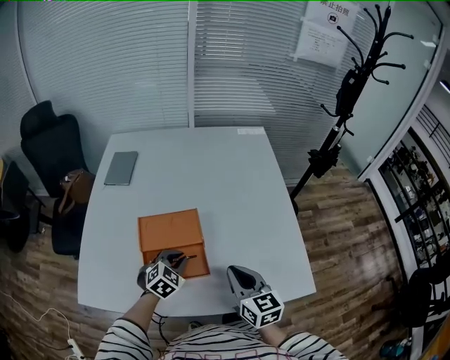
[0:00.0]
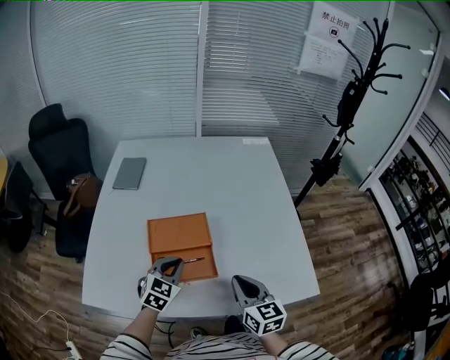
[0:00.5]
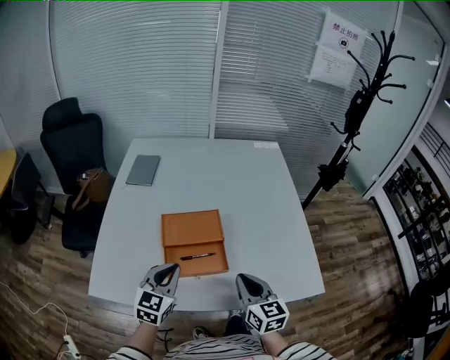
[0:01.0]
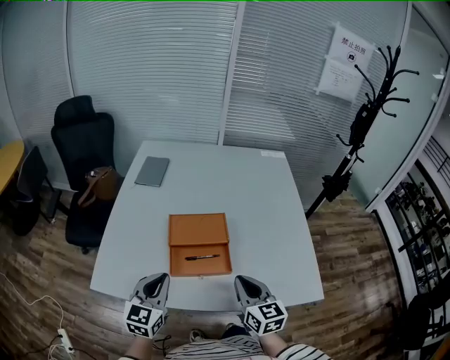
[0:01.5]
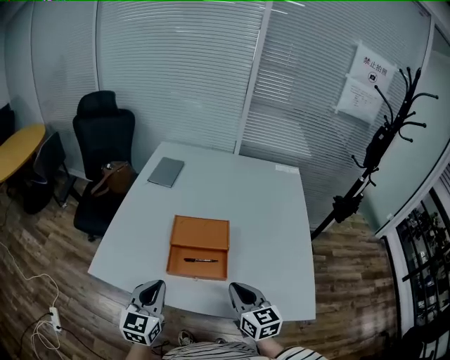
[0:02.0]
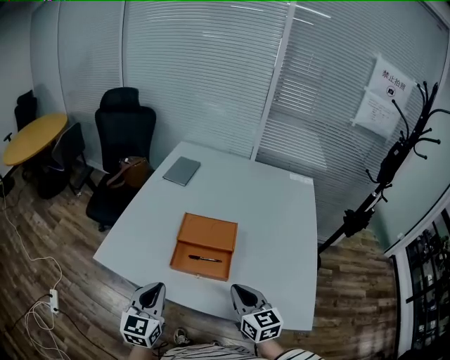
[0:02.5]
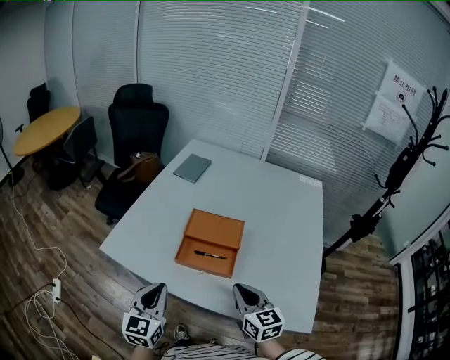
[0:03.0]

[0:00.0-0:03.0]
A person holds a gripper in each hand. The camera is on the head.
0:00.0 to 0:01.5: The left gripper is displaced backward, upward and to the left by approximately 25 cm, and tips its fingers upward by roughly 30 degrees. The right gripper travels backward and to the left by some 10 cm.
0:01.5 to 0:03.0: The left gripper travels backward by roughly 10 cm, and turns by some 20 degrees, while the right gripper changes its angle by some 20 degrees.

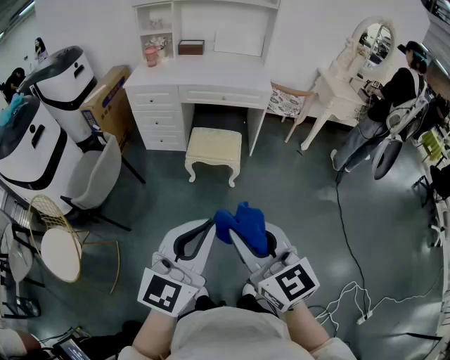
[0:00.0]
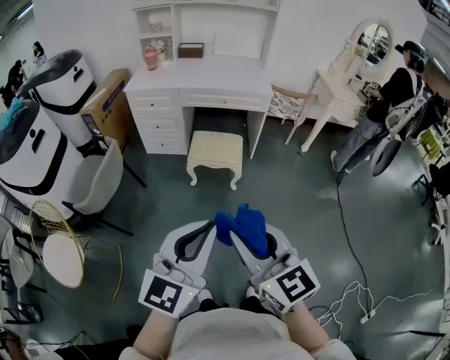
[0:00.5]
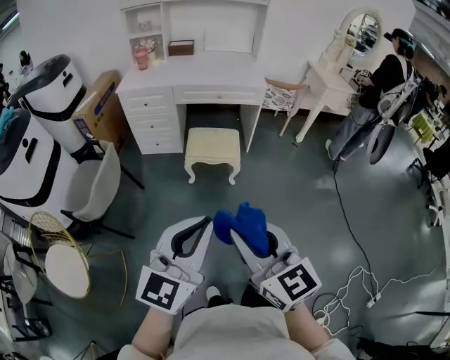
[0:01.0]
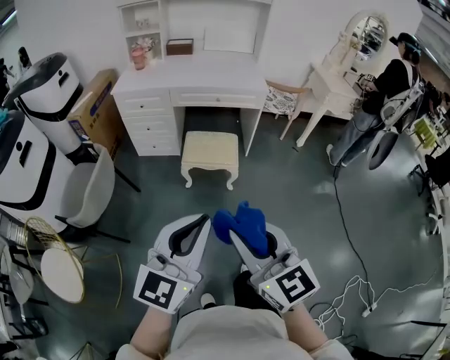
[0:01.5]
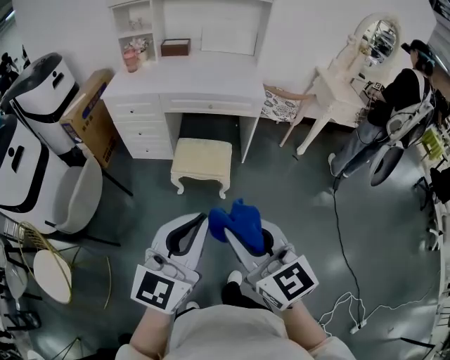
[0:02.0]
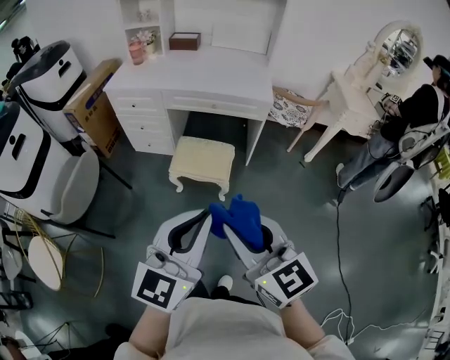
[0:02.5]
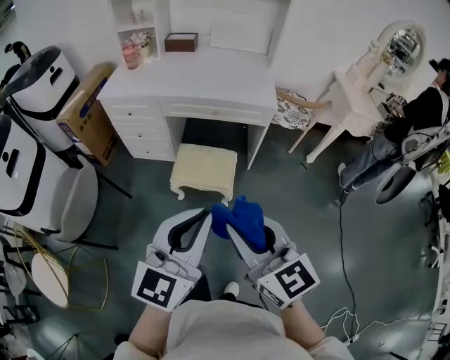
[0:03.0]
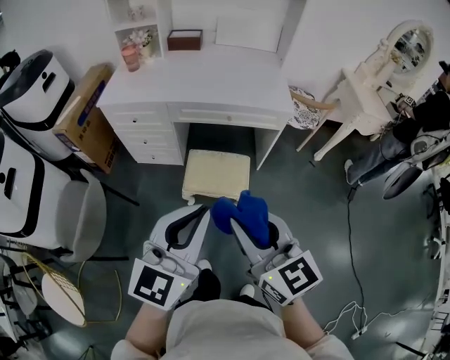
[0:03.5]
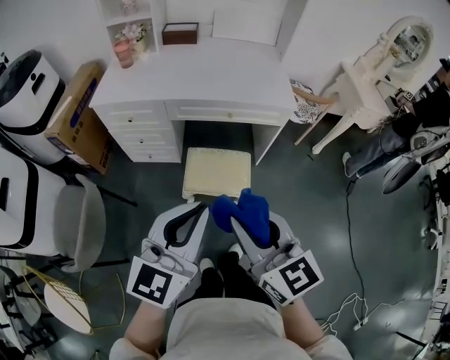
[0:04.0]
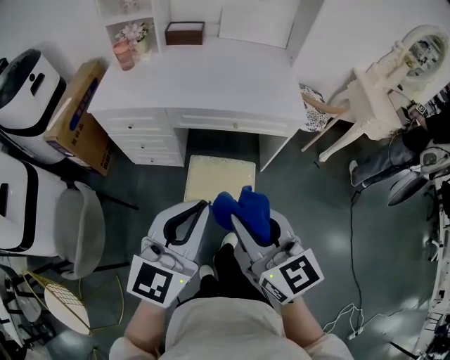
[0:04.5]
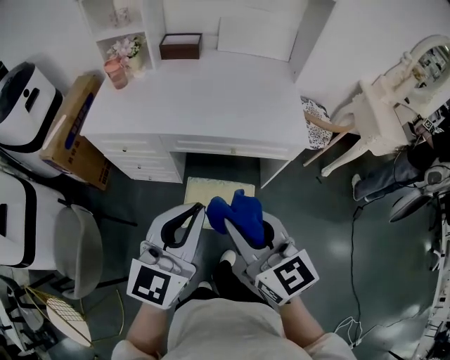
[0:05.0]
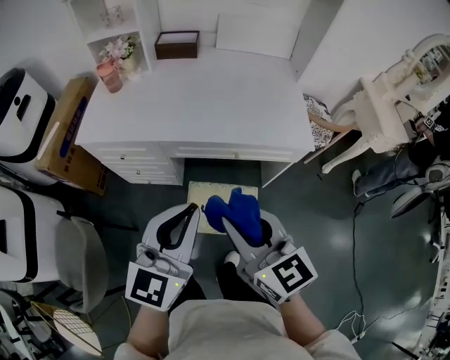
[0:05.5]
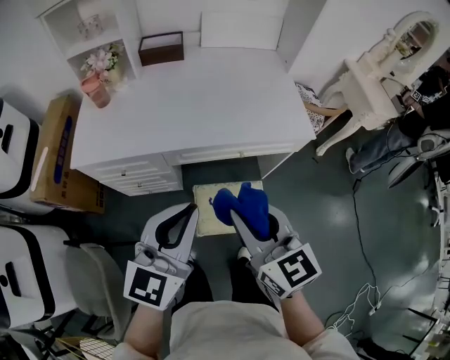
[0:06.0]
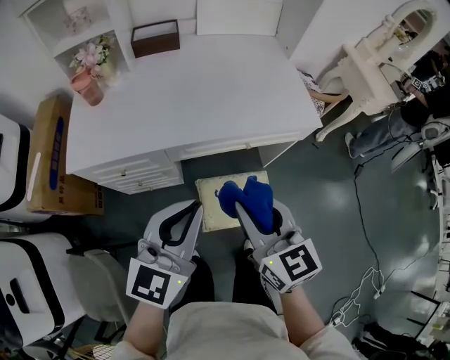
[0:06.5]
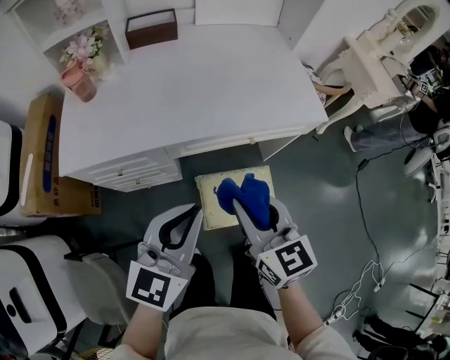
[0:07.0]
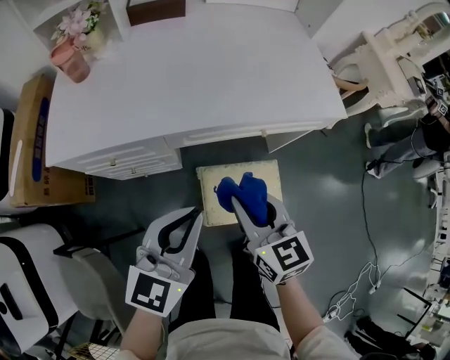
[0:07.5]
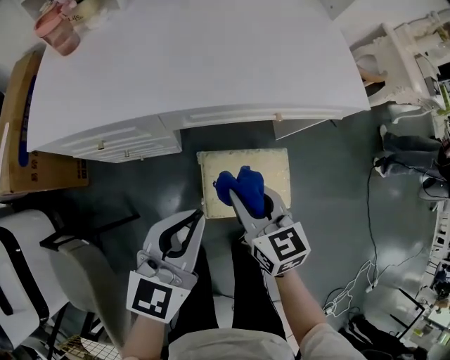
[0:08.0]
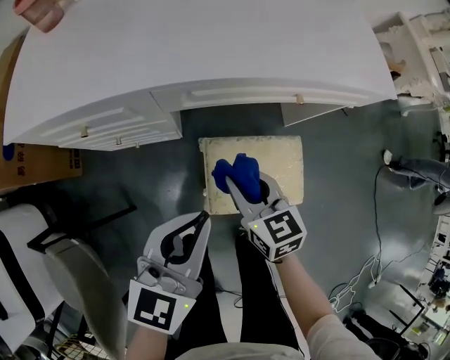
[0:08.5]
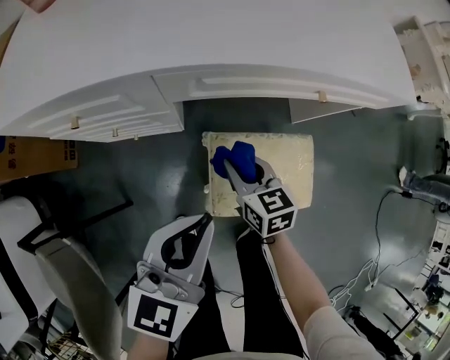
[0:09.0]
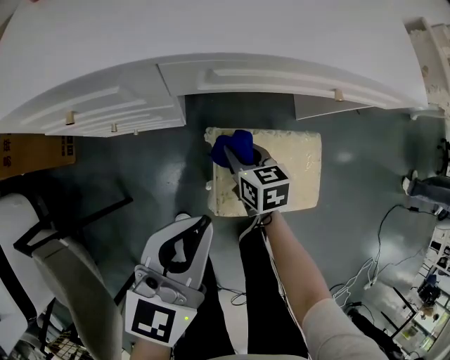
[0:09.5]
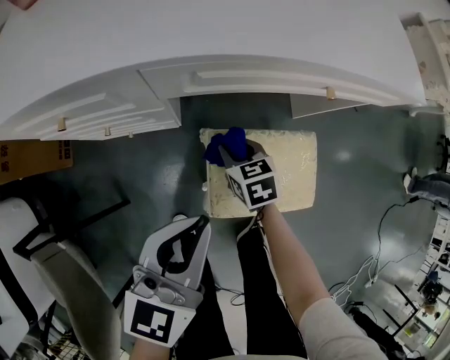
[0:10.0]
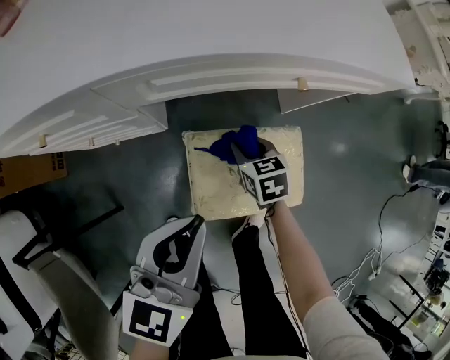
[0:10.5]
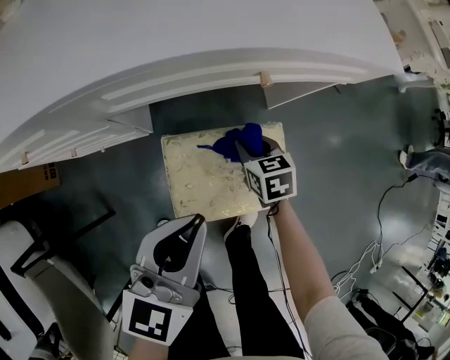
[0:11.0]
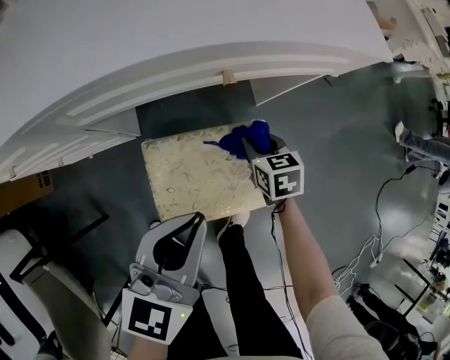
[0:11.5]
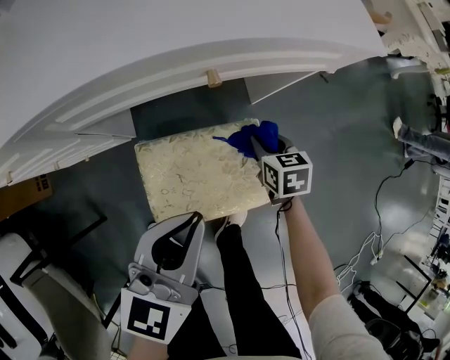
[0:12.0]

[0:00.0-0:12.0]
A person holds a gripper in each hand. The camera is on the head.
0:00.0 to 0:02.0: The two grippers go about 15 cm forward.
0:02.0 to 0:04.0: Both grippers travel together forward, roughly 30 cm.
0:04.0 to 0:06.0: The grippers both shift forward by about 30 cm.
0:06.0 to 0:08.0: The grippers both shift downward by roughly 25 cm.
0:08.0 to 0:10.0: The right gripper heads downward, covering some 30 cm, and changes its angle by about 20 degrees, while the left gripper goes about 10 cm downward.
0:10.0 to 0:12.0: The right gripper shifts roughly 30 cm to the right, while the left gripper goes approximately 15 cm to the right.

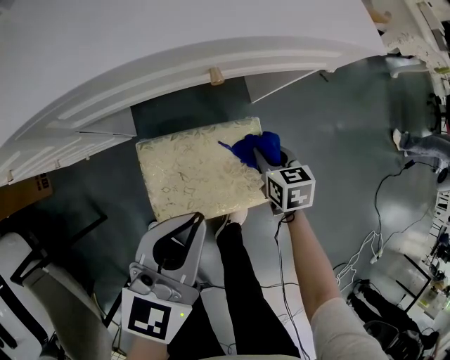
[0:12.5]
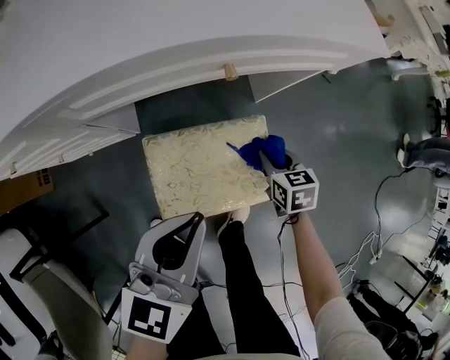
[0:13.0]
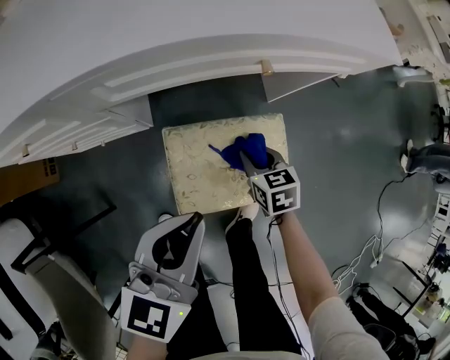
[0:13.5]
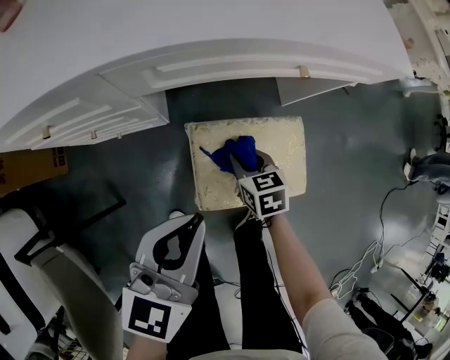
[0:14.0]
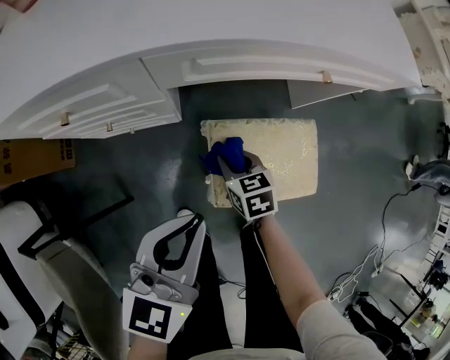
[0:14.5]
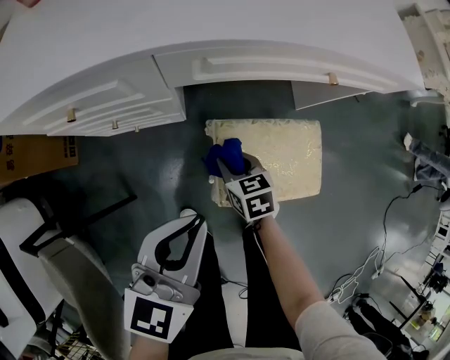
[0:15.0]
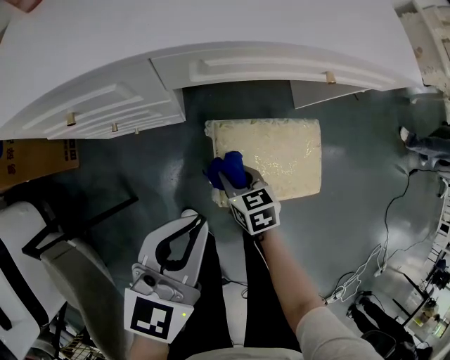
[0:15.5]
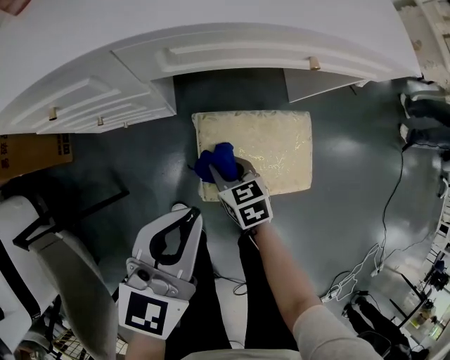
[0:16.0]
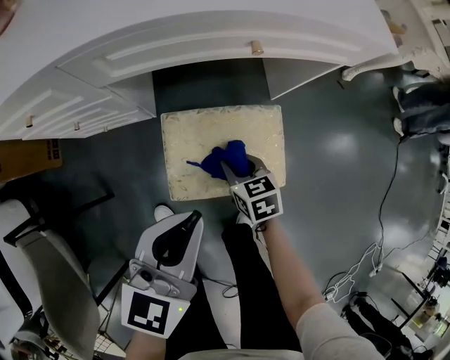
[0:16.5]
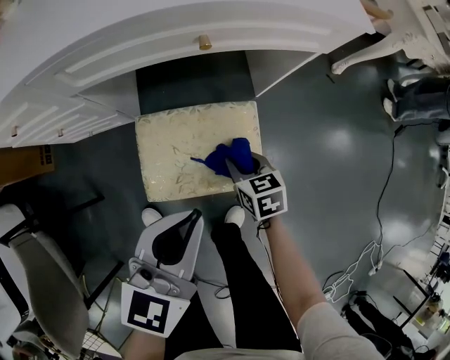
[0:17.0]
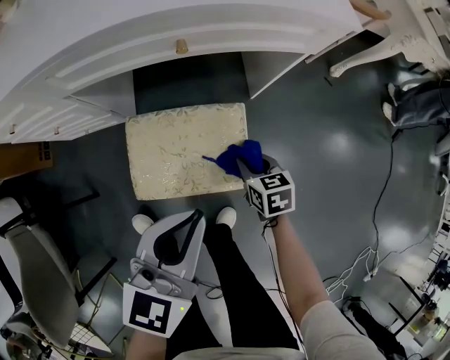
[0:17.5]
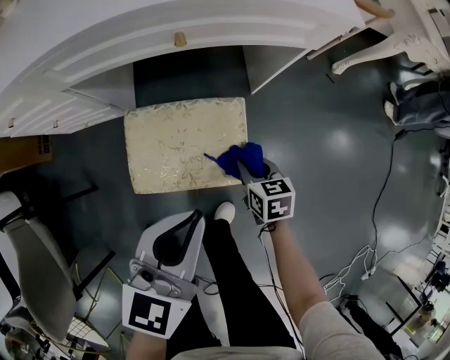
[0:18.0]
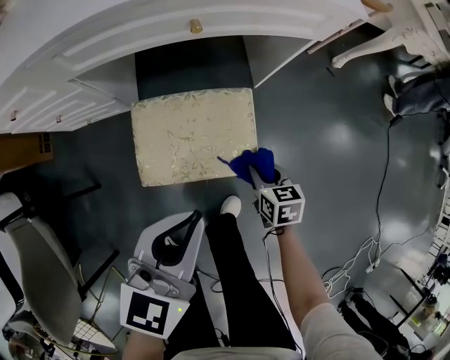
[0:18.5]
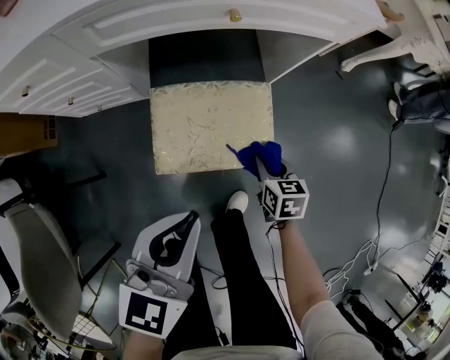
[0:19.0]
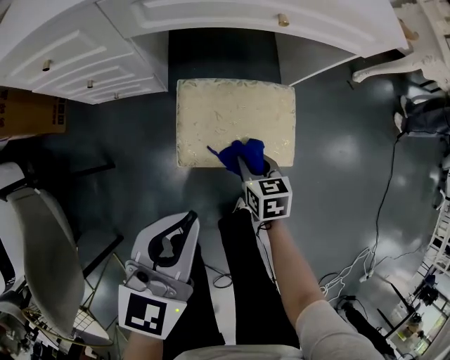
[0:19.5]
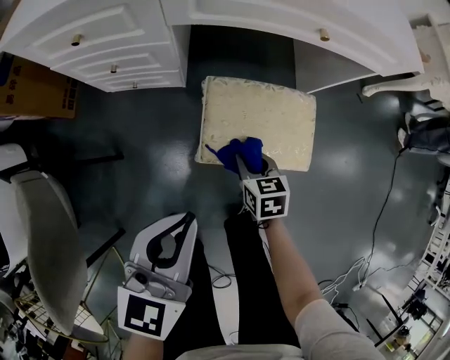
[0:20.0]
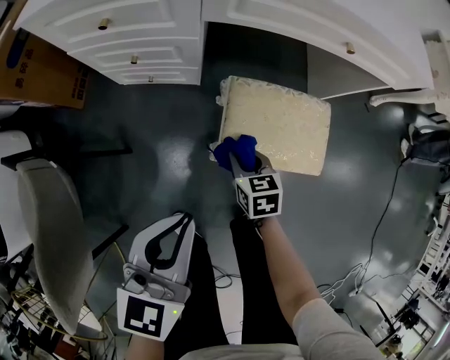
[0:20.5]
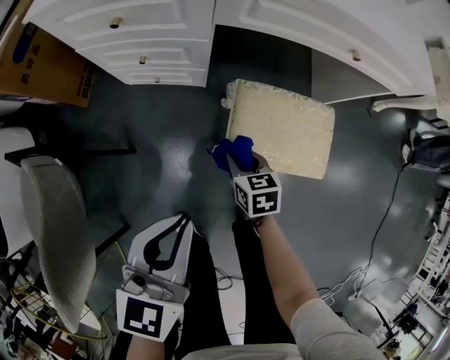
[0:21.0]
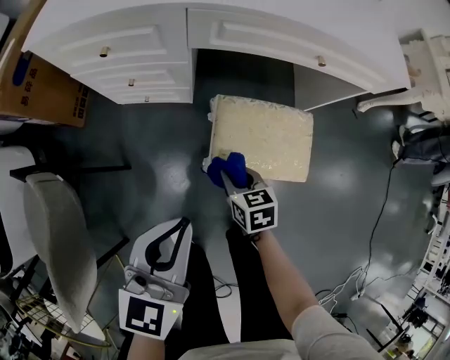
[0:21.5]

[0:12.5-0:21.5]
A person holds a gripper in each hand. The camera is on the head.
0:12.5 to 0:14.5: The left gripper travels to the left by approximately 20 cm. The right gripper moves to the left, about 30 cm.
0:14.5 to 0:17.0: The two grippers go about 20 cm to the right.
0:17.0 to 0:19.5: The left gripper travels to the left and backward by some 15 cm; the right gripper moves backward and to the left, approximately 10 cm.
0:19.5 to 0:21.5: Both grippers move to the left, about 15 cm.

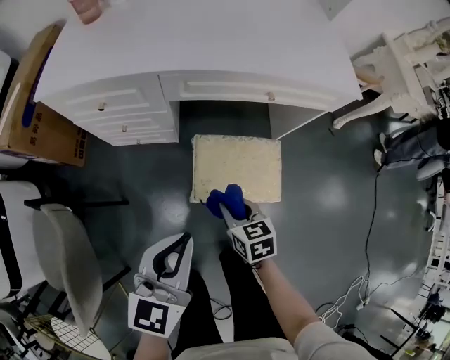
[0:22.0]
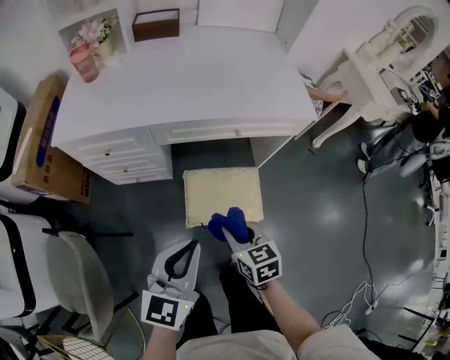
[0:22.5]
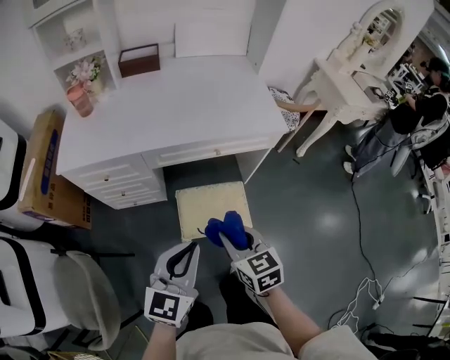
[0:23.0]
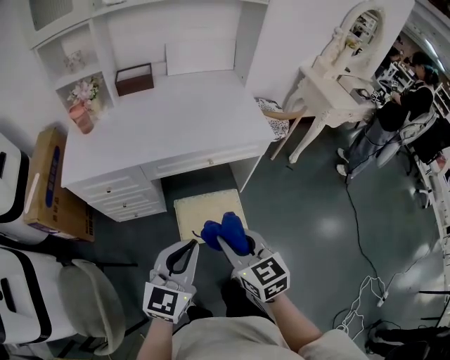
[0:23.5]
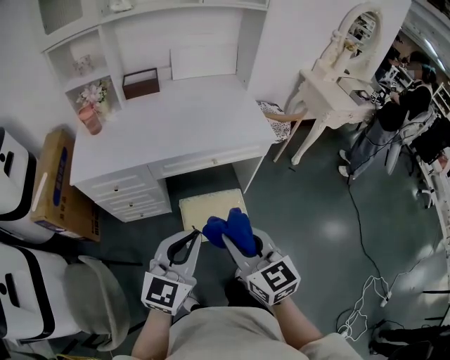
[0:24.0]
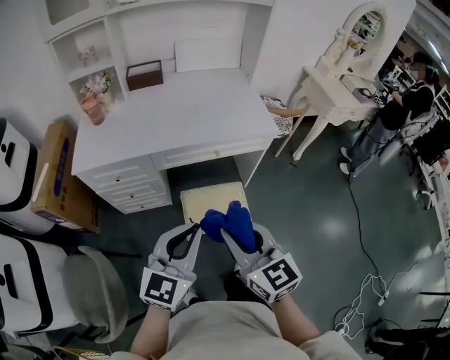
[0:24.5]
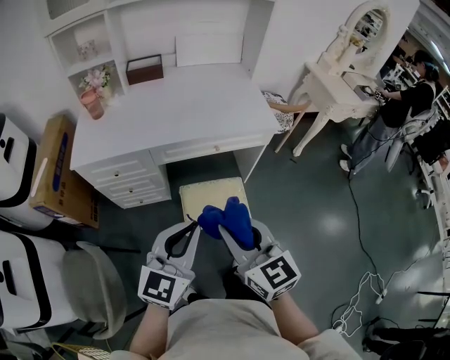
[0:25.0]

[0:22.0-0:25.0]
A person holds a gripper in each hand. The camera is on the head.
0:22.0 to 0:23.5: The right gripper goes roughly 35 cm upward, and swivels approximately 20 degrees. Meanwhile the left gripper goes some 20 cm upward and to the right.
0:23.5 to 0:25.0: The right gripper shifts approximately 10 cm upward. The left gripper moves approximately 5 cm.
